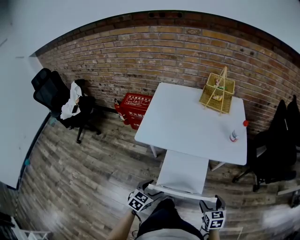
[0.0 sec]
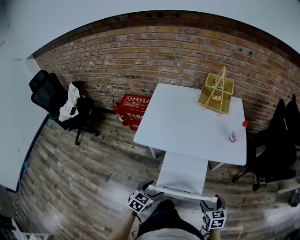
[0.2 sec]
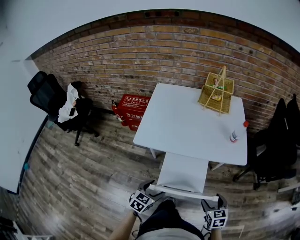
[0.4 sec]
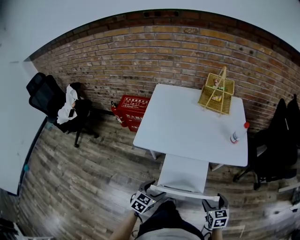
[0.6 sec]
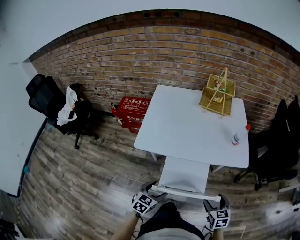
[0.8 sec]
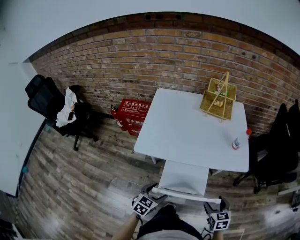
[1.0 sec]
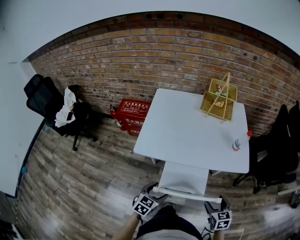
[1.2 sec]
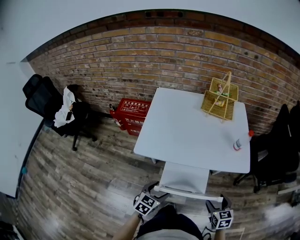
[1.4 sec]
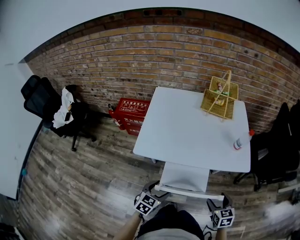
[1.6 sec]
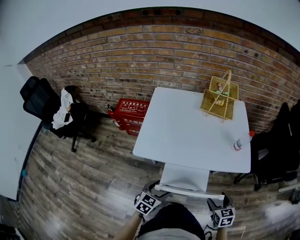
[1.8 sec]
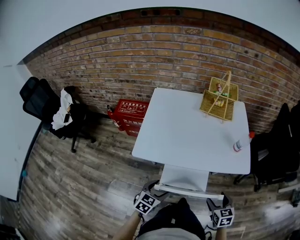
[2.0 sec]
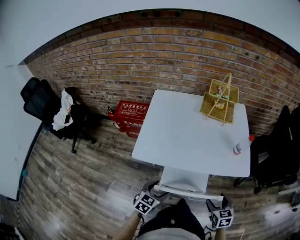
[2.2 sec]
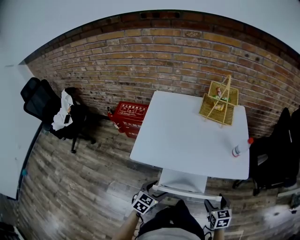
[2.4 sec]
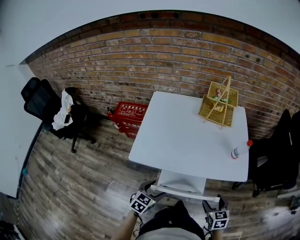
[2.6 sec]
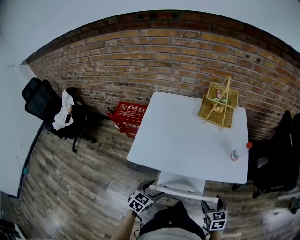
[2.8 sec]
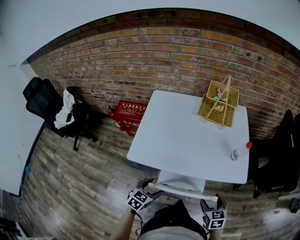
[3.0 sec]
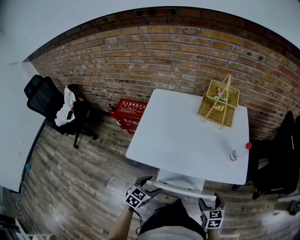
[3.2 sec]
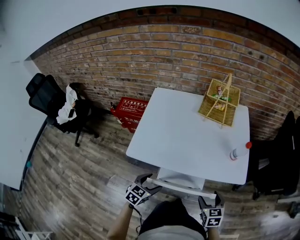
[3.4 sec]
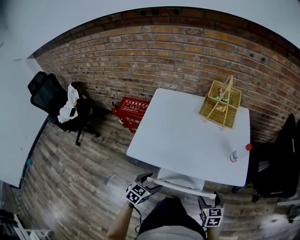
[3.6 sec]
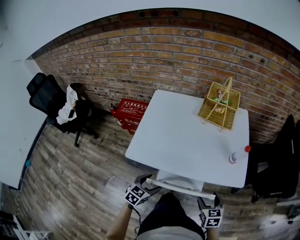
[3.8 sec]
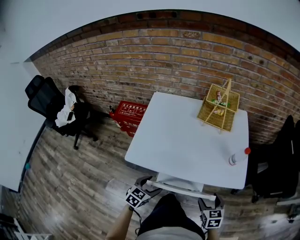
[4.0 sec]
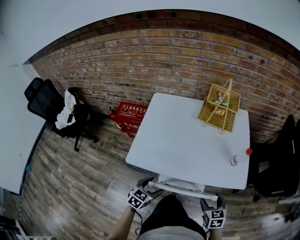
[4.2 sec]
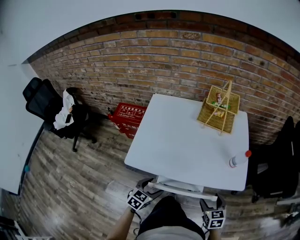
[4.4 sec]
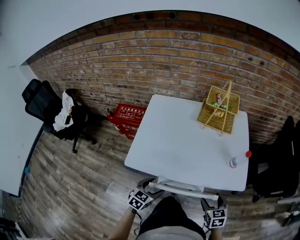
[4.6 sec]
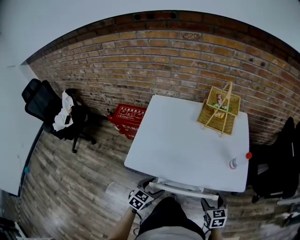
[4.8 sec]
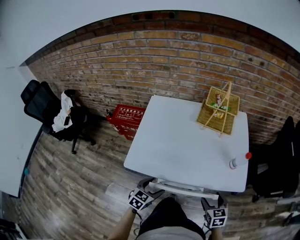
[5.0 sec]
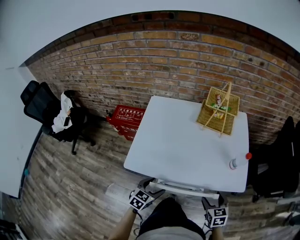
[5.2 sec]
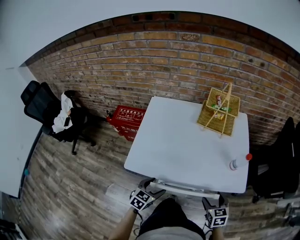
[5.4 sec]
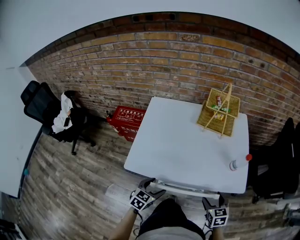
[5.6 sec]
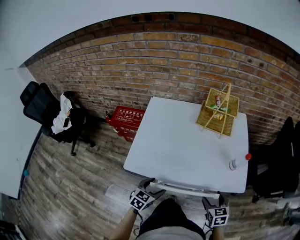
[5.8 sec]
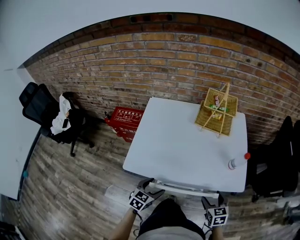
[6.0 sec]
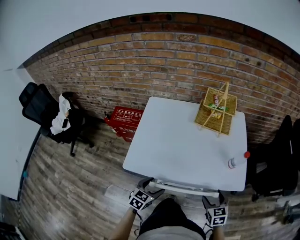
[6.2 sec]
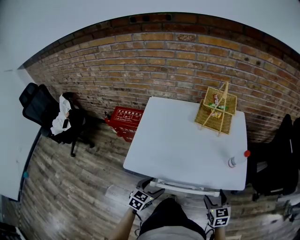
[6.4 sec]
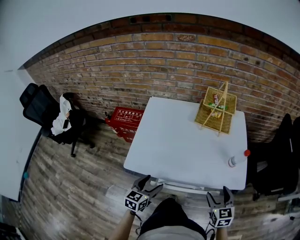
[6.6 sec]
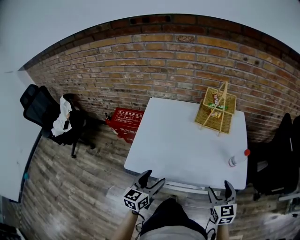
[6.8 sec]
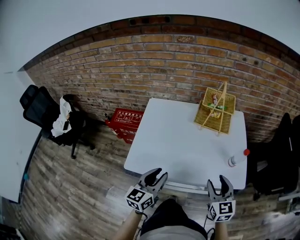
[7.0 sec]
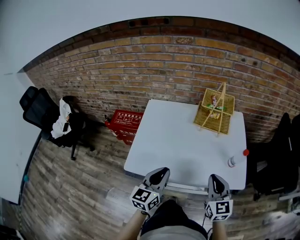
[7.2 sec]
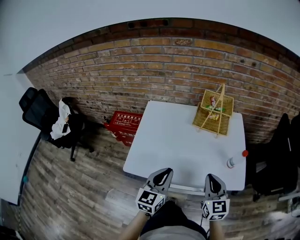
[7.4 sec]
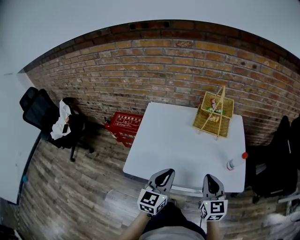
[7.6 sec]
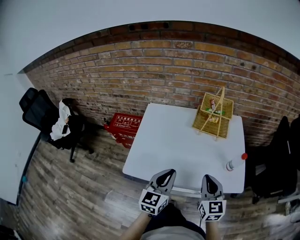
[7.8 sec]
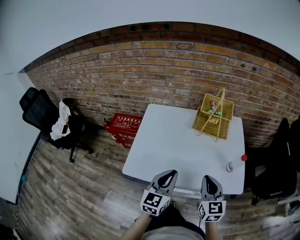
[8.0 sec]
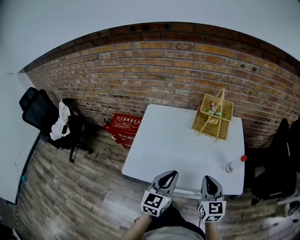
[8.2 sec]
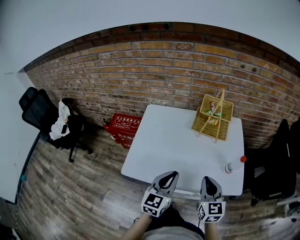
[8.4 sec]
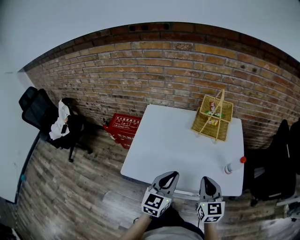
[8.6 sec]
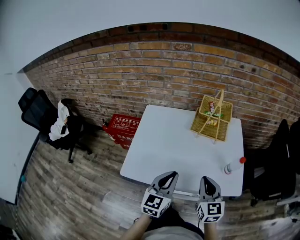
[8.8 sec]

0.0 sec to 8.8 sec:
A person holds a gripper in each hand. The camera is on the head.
0.0 sec to 1.4 sec: The grippers both shift forward by some 10 cm.
1.4 sec to 3.0 sec: Both grippers move forward, some 5 cm.
3.0 sec to 4.4 sec: The grippers stay close to where they were, moving slightly.
4.4 sec to 5.8 sec: The grippers stay close to where they were, moving slightly.
5.8 sec to 7.4 sec: The left gripper is displaced upward by about 20 cm, swivels some 30 degrees, and closes up, while the right gripper goes roughly 15 cm upward and to the left, turns by about 30 degrees, and closes its fingers.
7.4 sec to 8.8 sec: The grippers stay close to where they were, moving slightly.

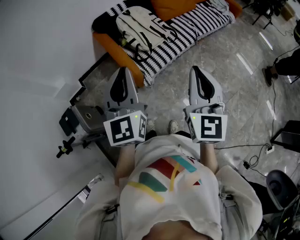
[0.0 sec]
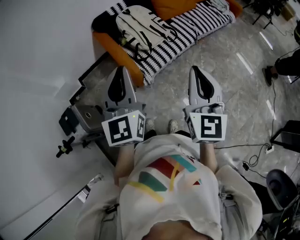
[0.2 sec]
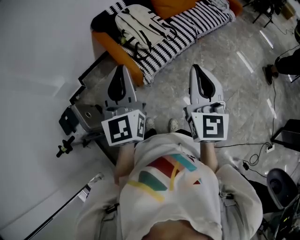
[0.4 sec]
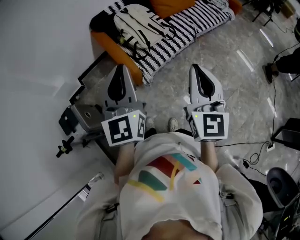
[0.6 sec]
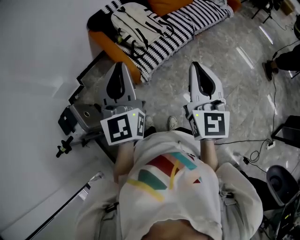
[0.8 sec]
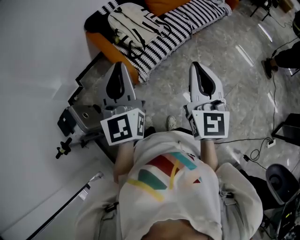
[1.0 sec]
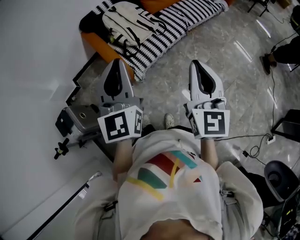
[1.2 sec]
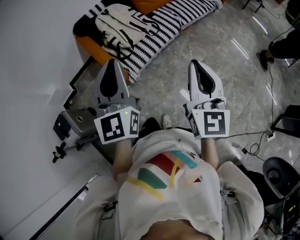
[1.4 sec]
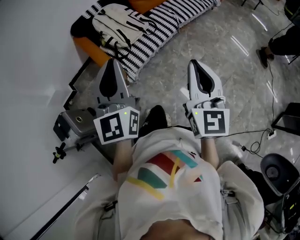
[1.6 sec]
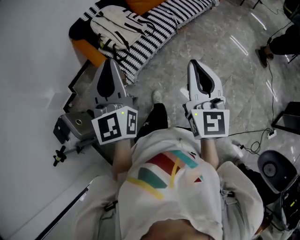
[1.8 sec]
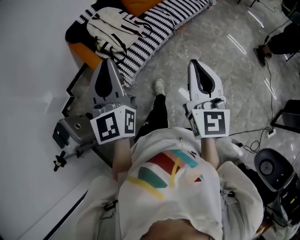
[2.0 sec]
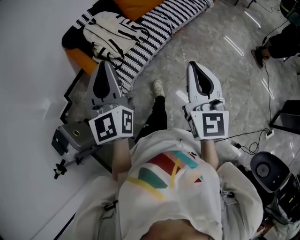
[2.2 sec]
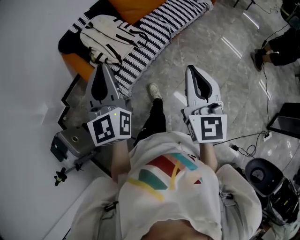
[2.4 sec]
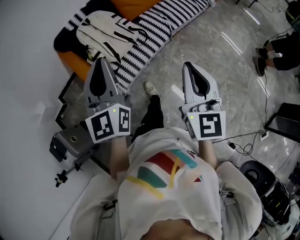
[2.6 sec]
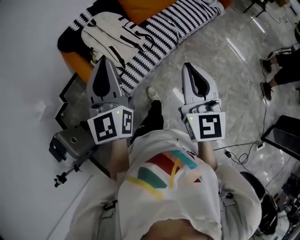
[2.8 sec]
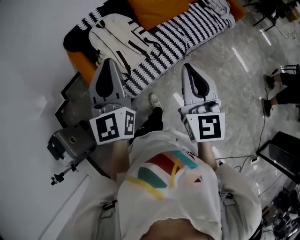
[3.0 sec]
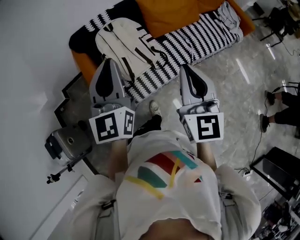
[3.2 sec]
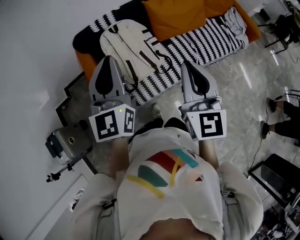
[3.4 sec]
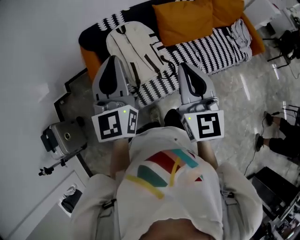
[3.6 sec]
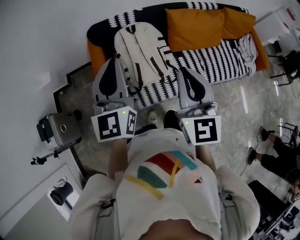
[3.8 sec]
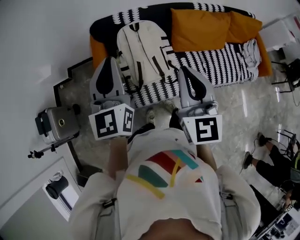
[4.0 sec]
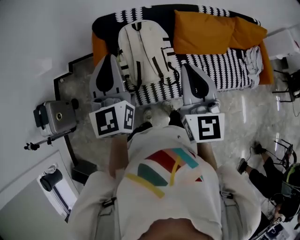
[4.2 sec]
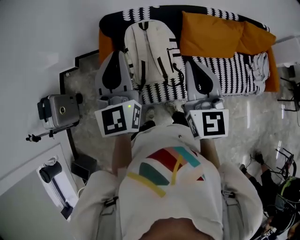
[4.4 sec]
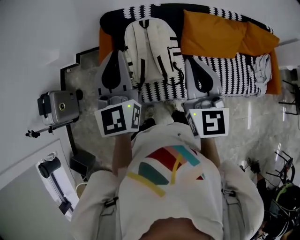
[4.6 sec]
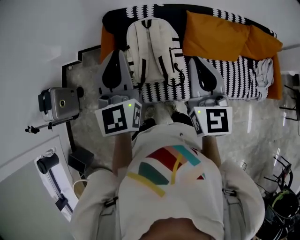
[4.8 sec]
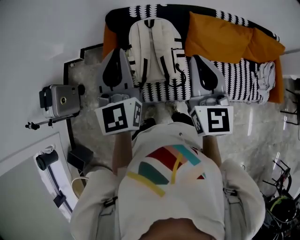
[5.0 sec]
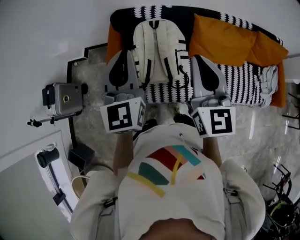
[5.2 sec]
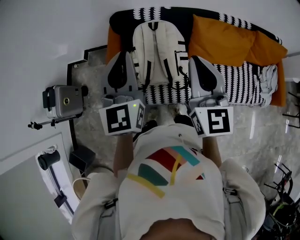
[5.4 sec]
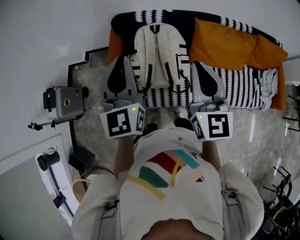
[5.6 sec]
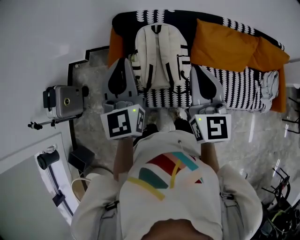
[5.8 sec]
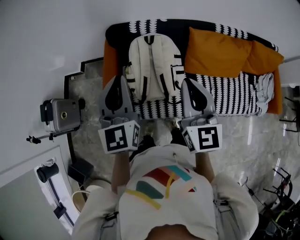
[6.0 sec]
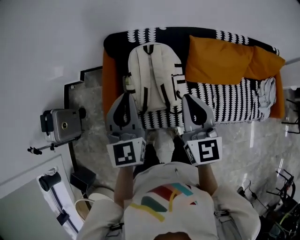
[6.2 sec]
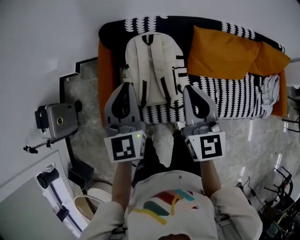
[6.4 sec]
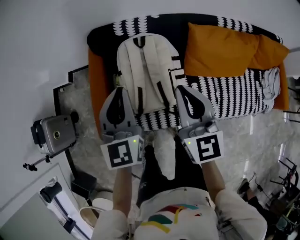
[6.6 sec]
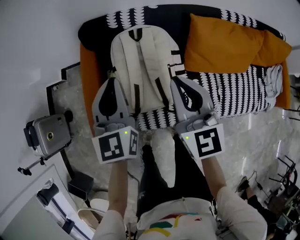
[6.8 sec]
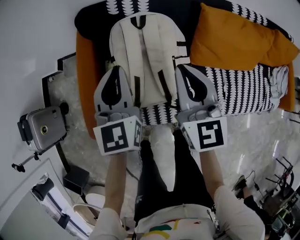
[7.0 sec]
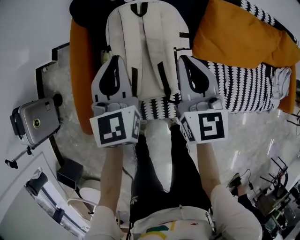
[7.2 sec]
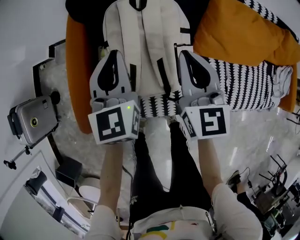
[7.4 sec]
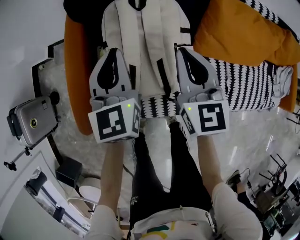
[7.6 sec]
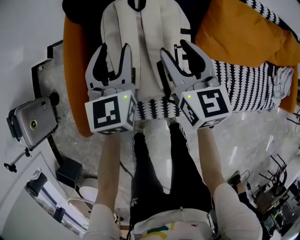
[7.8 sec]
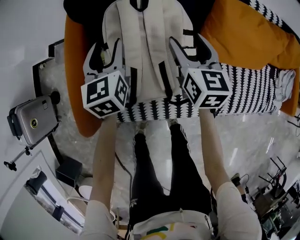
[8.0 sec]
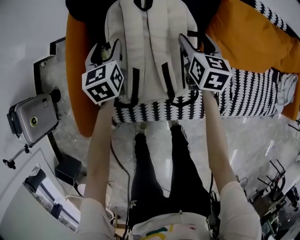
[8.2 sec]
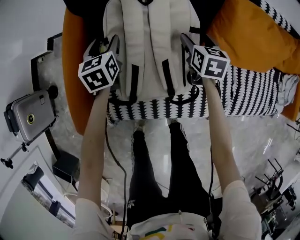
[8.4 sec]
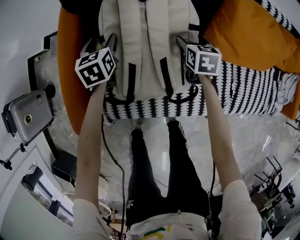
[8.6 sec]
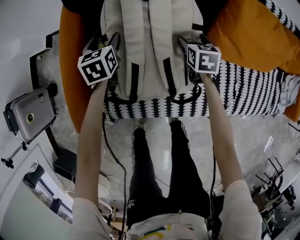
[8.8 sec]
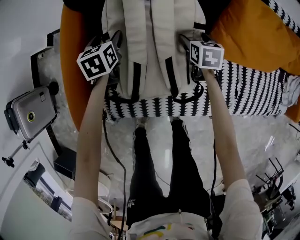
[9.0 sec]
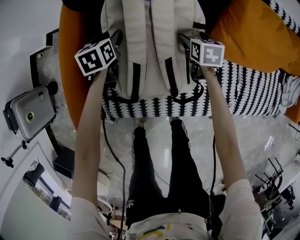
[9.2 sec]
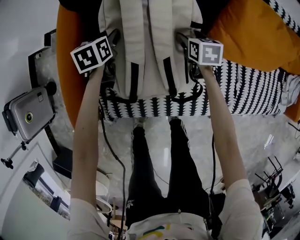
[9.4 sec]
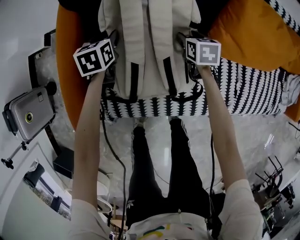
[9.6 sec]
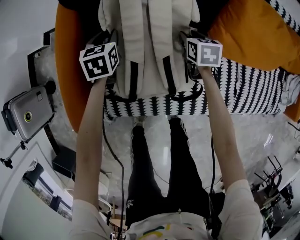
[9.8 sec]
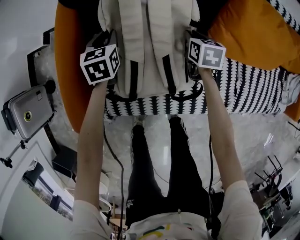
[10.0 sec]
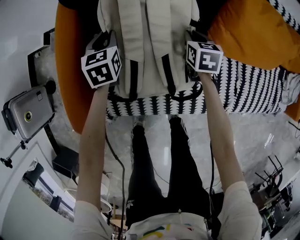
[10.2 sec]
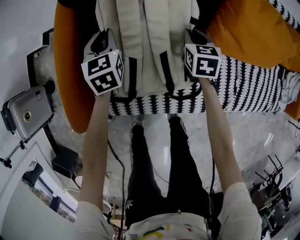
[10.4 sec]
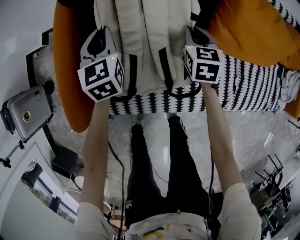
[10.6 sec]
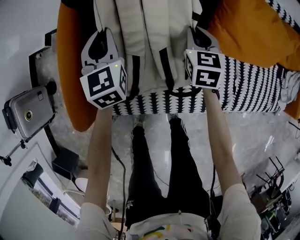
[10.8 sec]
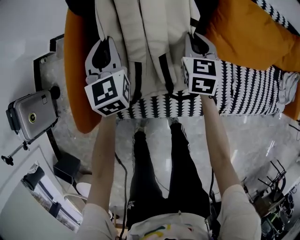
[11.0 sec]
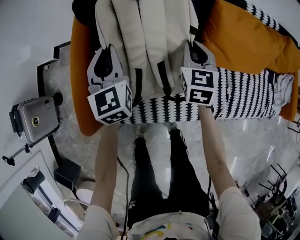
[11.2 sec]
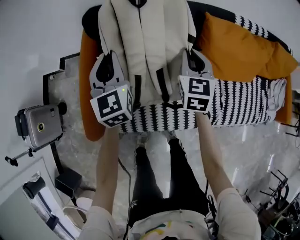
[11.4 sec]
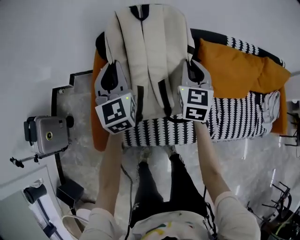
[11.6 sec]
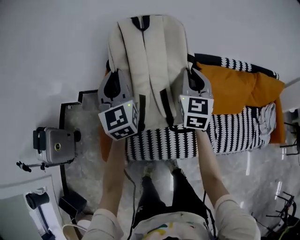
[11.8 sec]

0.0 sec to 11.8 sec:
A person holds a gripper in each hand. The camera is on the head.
0.0 sec to 1.4 sec: The two grippers go some 10 cm to the right.
1.4 sec to 3.0 sec: The two grippers go some 30 cm forward.
3.0 sec to 4.4 sec: The left gripper shifts by roughly 15 cm, and turns by roughly 30 degrees; the right gripper ends up some 25 cm from where it was, and turns by some 30 degrees.
4.4 sec to 6.0 sec: The right gripper changes place by roughly 5 cm.
6.0 sec to 7.4 sec: Both grippers move downward and forward, roughly 30 cm.
7.4 sec to 8.8 sec: The left gripper shifts roughly 25 cm downward and forward, turns by about 30 degrees, and opens. The right gripper moves downward, about 30 cm, angles its fingers downward, by approximately 30 degrees, and opens up.
8.8 sec to 10.4 sec: The right gripper closes up; the left gripper closes its fingers.
10.4 sec to 11.8 sec: The grippers both shift upward by roughly 40 cm. The left gripper angles its fingers upward, by roughly 40 degrees, while the right gripper tips its fingers upward by approximately 30 degrees.

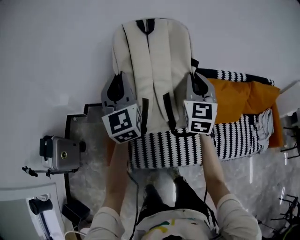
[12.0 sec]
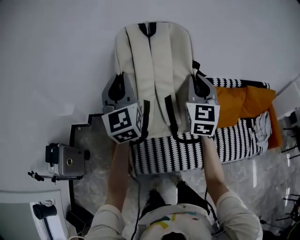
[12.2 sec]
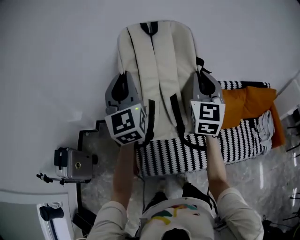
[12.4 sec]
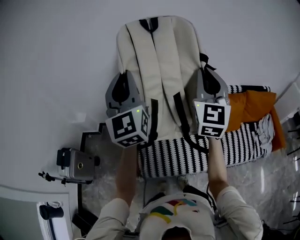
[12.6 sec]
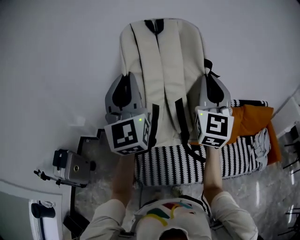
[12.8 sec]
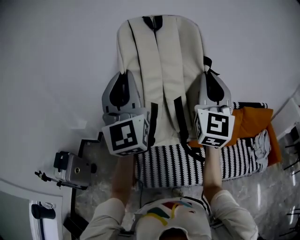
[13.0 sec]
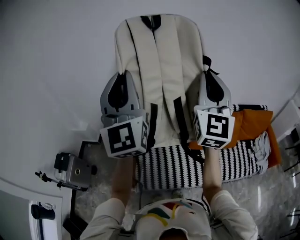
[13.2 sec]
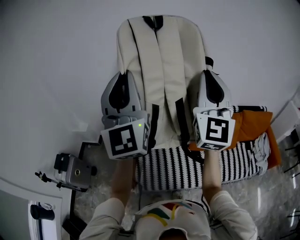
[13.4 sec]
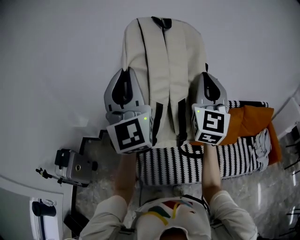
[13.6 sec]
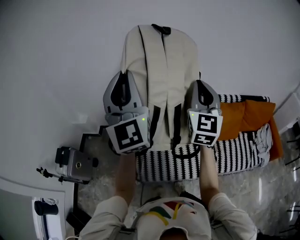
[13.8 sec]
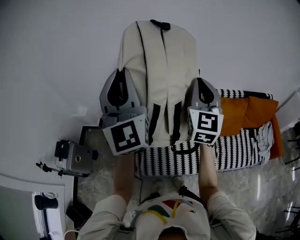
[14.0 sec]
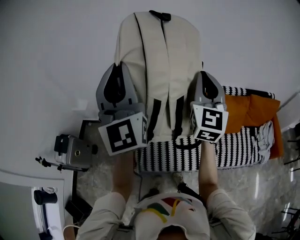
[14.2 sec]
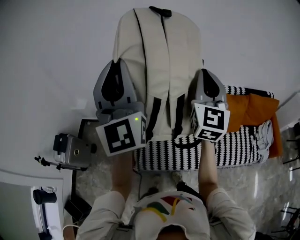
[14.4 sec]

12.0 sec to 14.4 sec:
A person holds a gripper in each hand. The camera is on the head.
12.0 sec to 13.2 sec: The two grippers go about 30 cm upward and backward. The left gripper changes its angle by about 20 degrees; the right gripper turns by approximately 30 degrees.
13.2 sec to 14.4 sec: The right gripper shifts approximately 10 cm downward.
